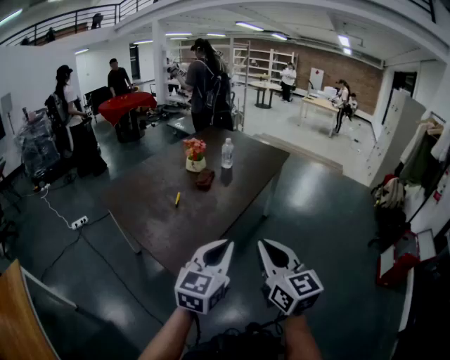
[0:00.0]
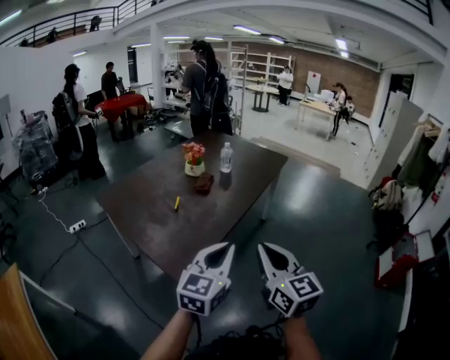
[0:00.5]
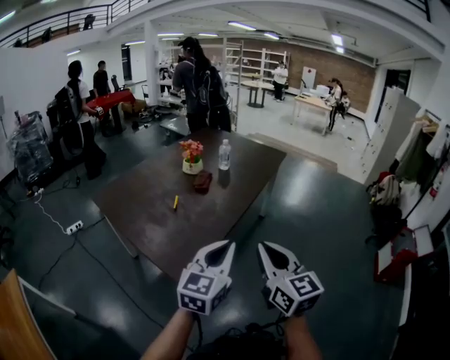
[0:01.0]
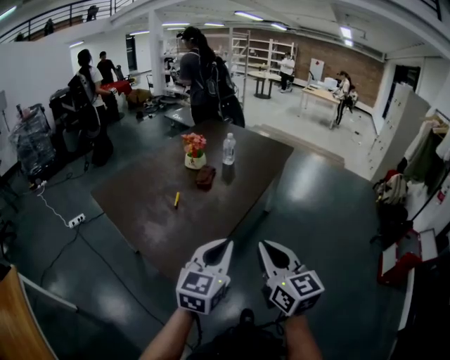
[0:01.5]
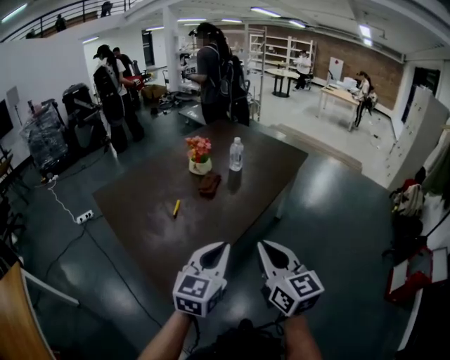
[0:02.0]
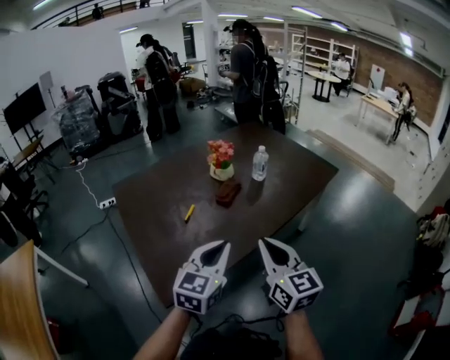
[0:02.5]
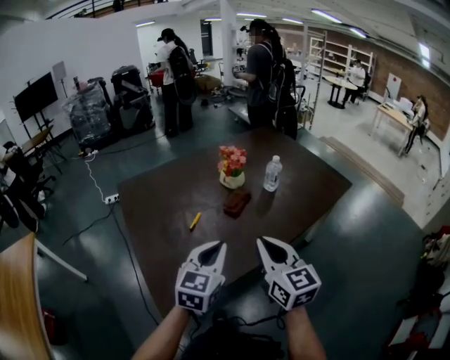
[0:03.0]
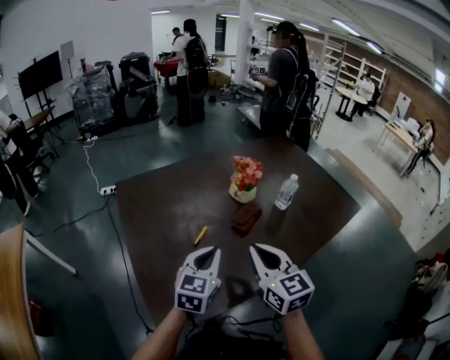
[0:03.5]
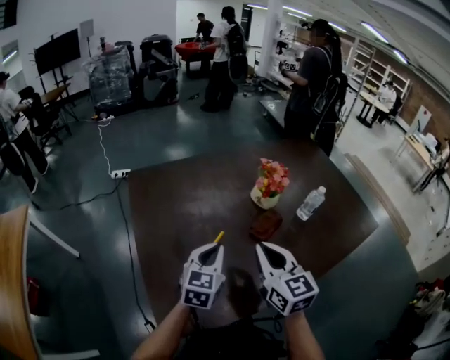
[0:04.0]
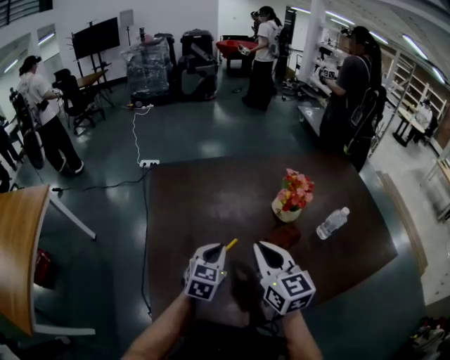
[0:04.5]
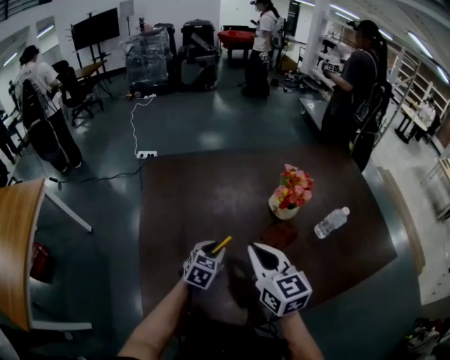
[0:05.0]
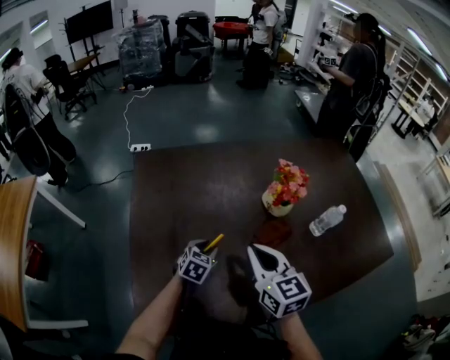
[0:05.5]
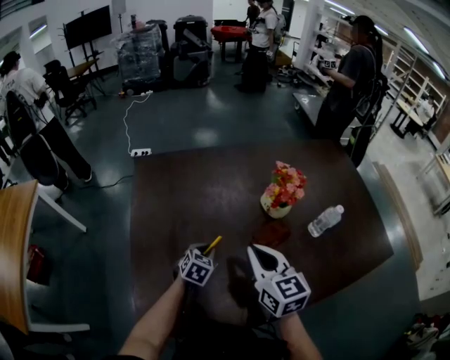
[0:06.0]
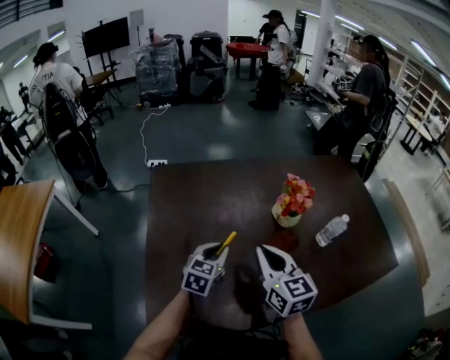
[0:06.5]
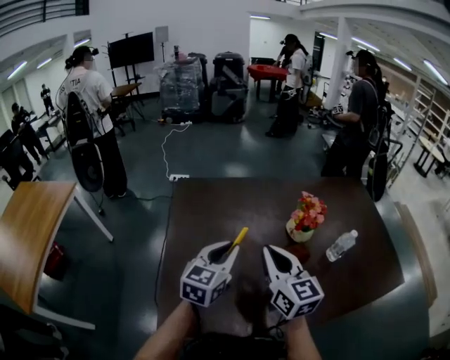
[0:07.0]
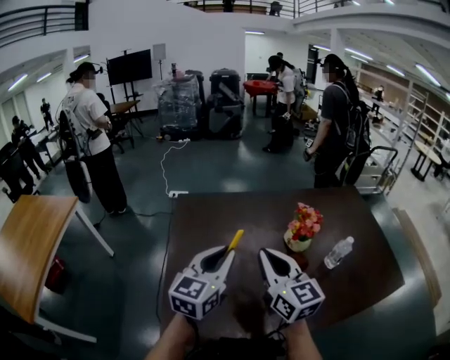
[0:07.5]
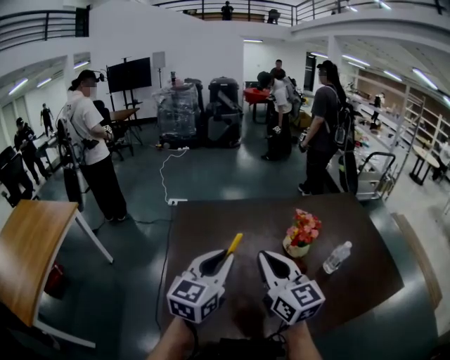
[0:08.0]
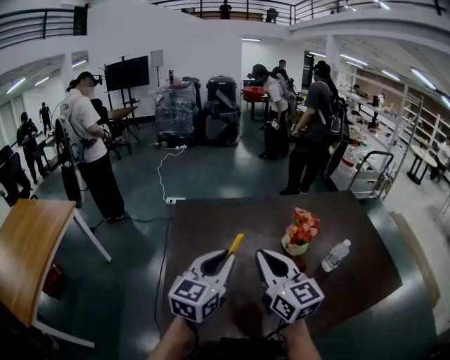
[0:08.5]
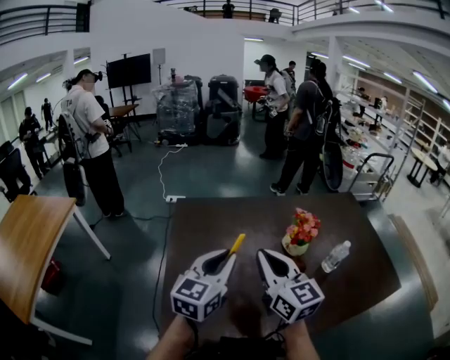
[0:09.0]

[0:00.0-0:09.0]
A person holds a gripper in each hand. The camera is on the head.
0:00.0 to 0:02.0: Both grippers travel together forward, about 15 cm.
0:02.0 to 0:04.5: The left gripper moves approximately 40 cm, and turns by some 40 degrees, while the right gripper changes place by about 40 cm, and swivels approximately 40 degrees.
0:04.5 to 0:07.0: The left gripper travels upward by some 15 cm. The right gripper shifts roughly 5 cm upward.
0:07.0 to 0:09.0: The left gripper goes some 5 cm upward, while the right gripper ends up approximately 5 cm from where it was.

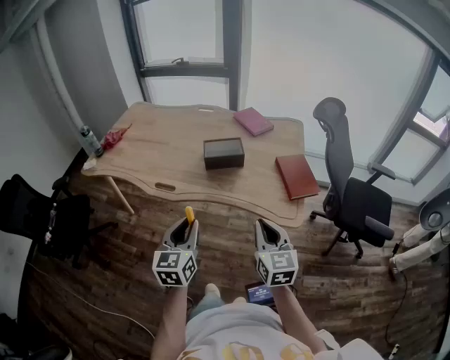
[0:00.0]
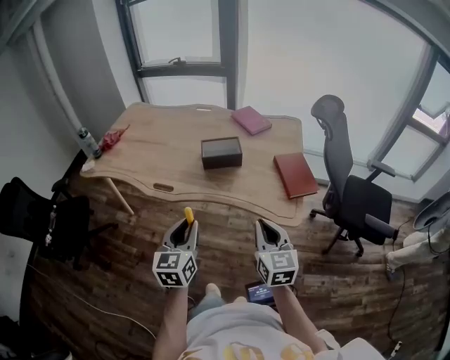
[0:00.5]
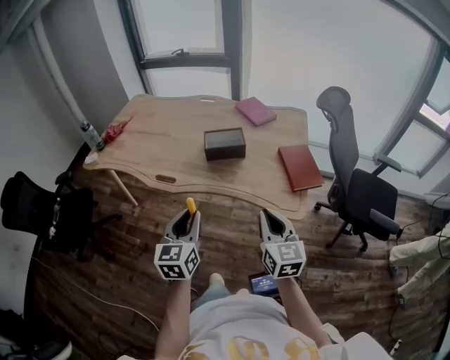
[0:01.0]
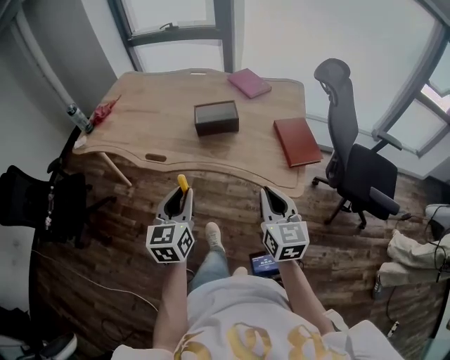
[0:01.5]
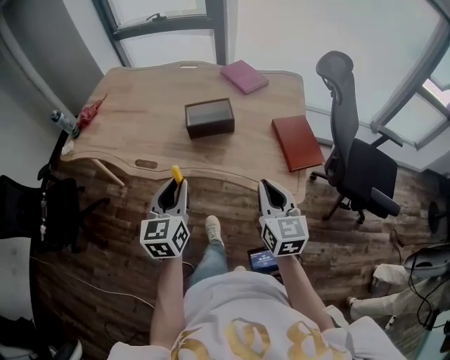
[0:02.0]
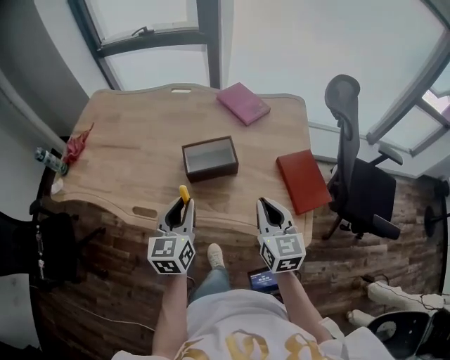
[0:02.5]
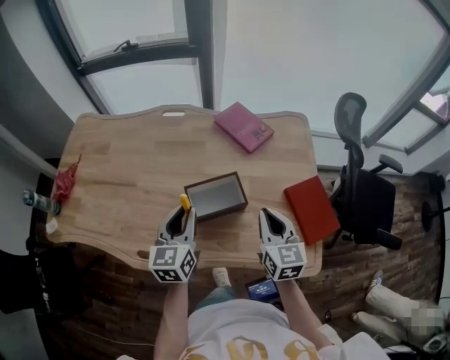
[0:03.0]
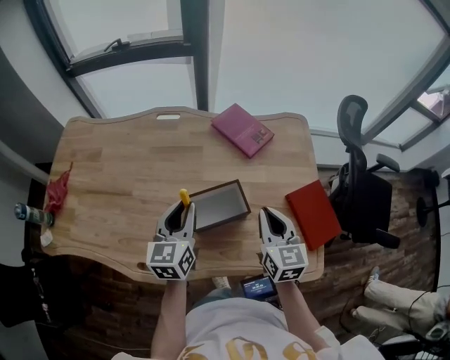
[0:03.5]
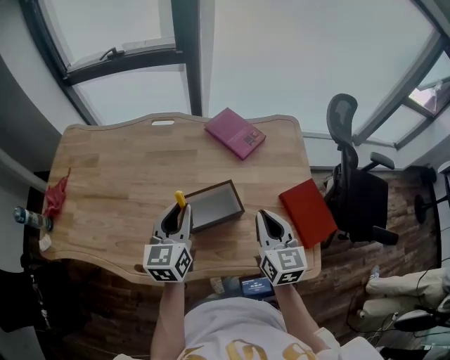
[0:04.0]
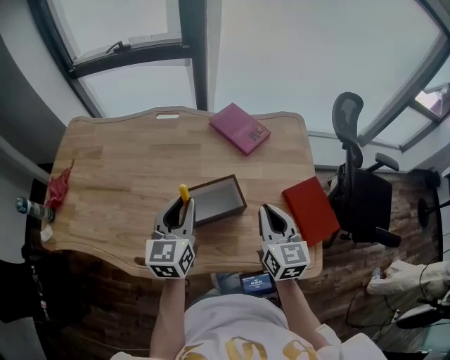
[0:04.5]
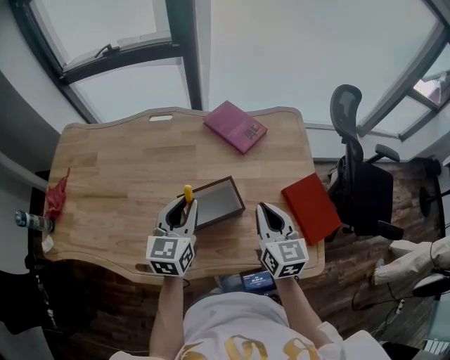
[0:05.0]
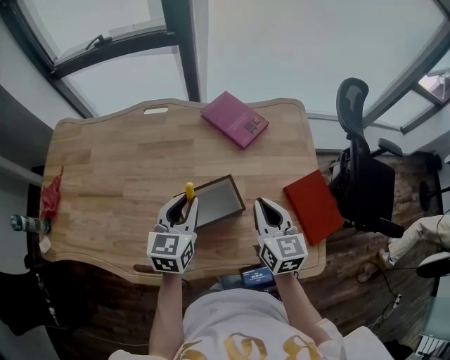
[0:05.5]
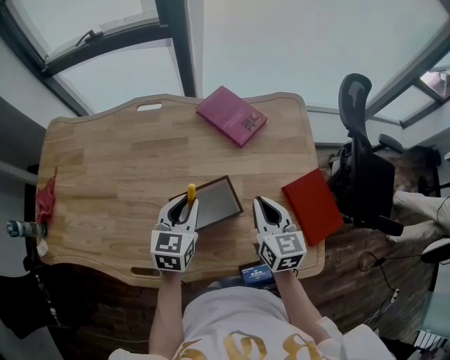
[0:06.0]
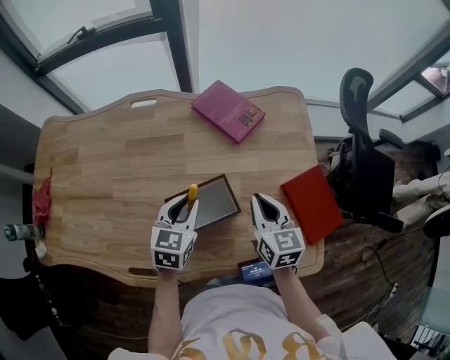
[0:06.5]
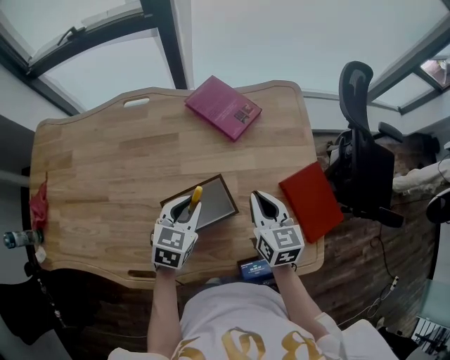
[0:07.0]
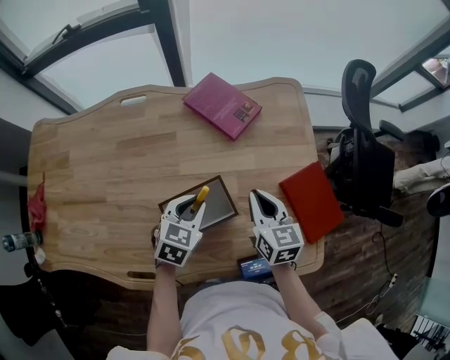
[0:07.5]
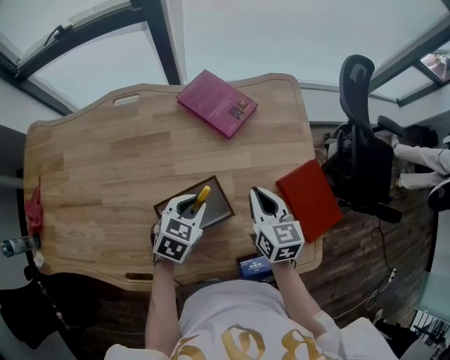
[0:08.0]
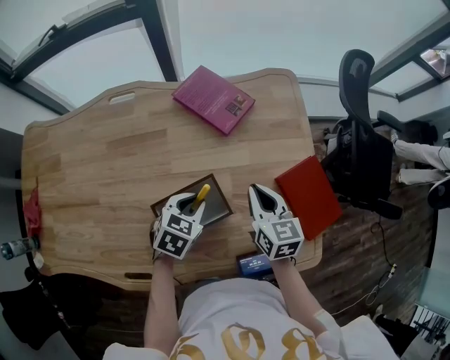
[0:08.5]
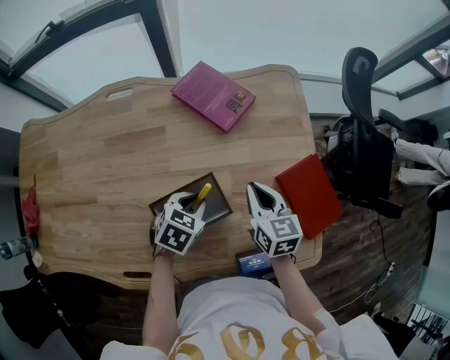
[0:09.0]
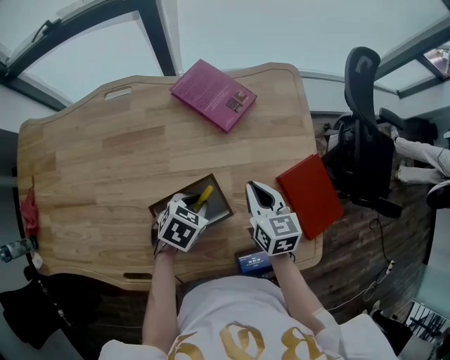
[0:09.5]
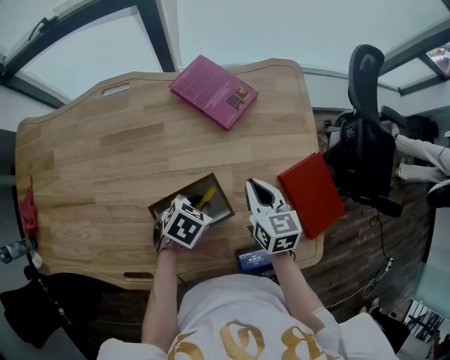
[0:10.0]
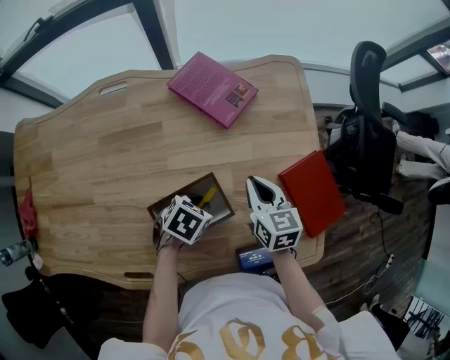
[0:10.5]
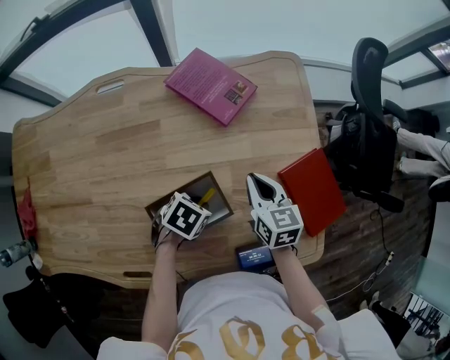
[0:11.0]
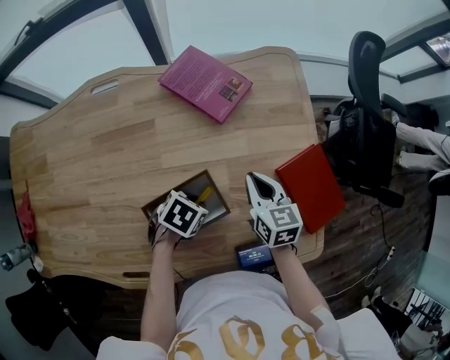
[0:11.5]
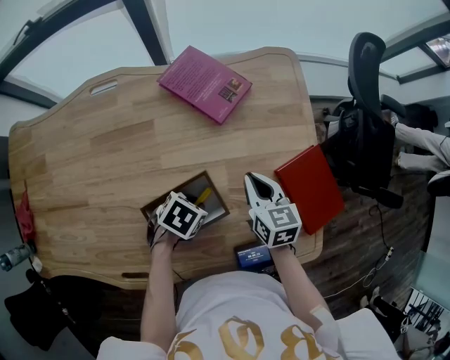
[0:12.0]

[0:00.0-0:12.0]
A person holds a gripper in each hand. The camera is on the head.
0:00.0 to 0:02.0: Both grippers move forward, approximately 10 cm.
0:02.0 to 0:04.0: Both grippers move forward, some 30 cm.
0:04.0 to 0:06.0: The right gripper heads forward and downward, covering roughly 10 cm. The left gripper moves downward and forward, approximately 10 cm.
0:06.0 to 0:08.0: The right gripper ends up some 5 cm from where it was. Meanwhile the left gripper goes about 10 cm downward and to the right, and rotates approximately 30 degrees.
0:08.0 to 0:10.0: The left gripper heads downward, covering approximately 5 cm, and rotates approximately 20 degrees.
0:10.0 to 0:12.0: The grippers stay close to where they were, moving slightly.

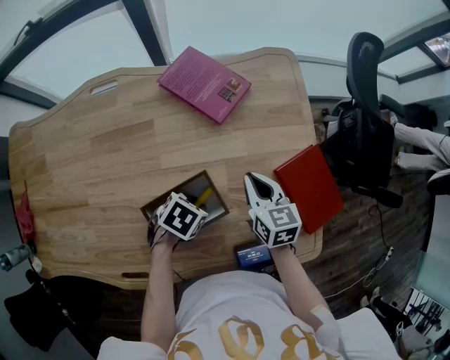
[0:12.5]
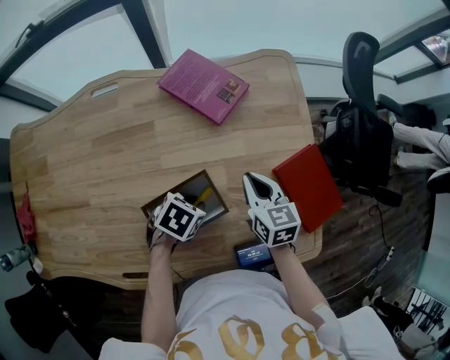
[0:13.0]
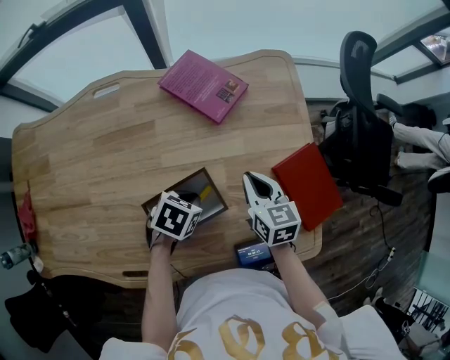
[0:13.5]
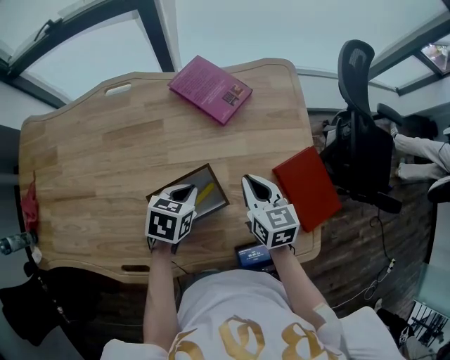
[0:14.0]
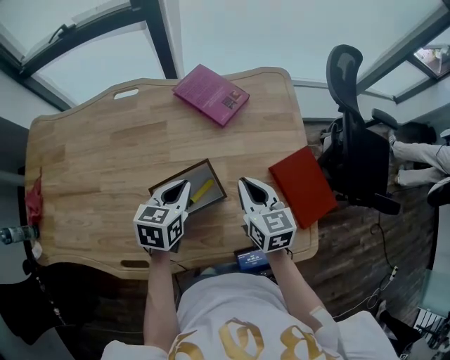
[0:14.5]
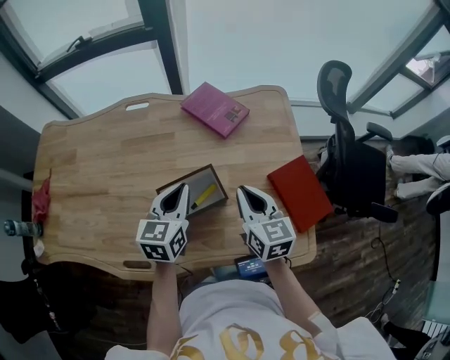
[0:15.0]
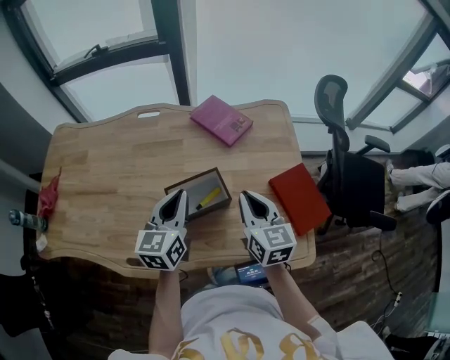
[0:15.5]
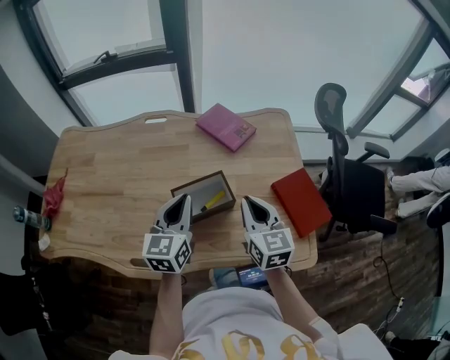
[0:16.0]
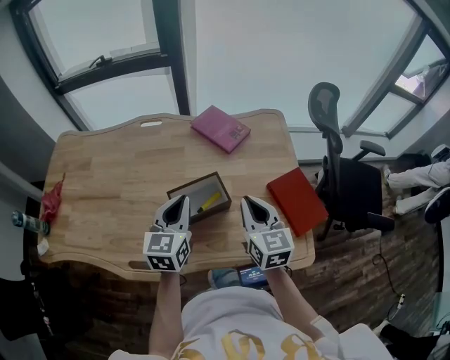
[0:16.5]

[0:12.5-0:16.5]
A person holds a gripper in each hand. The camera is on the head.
0:12.5 to 0:14.5: The right gripper shifts some 5 cm upward. The left gripper is displaced upward by some 15 cm, rotates approximately 50 degrees, and closes.
0:14.5 to 0:16.5: The grippers both shift upward and backward by approximately 15 cm. The left gripper changes its angle by some 30 degrees.

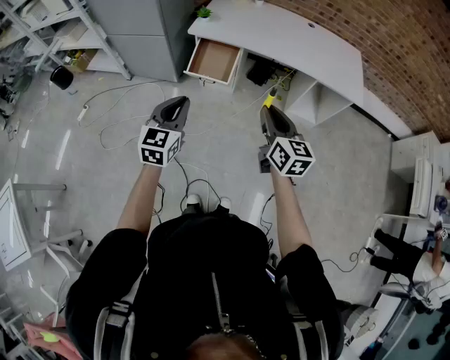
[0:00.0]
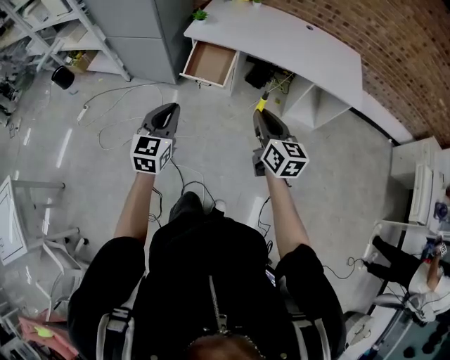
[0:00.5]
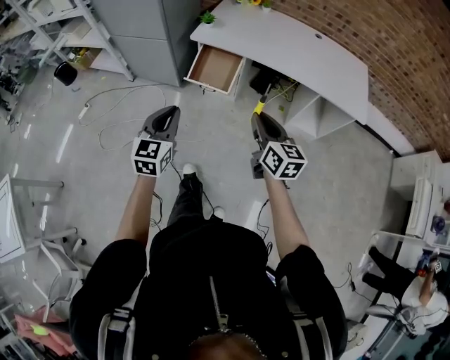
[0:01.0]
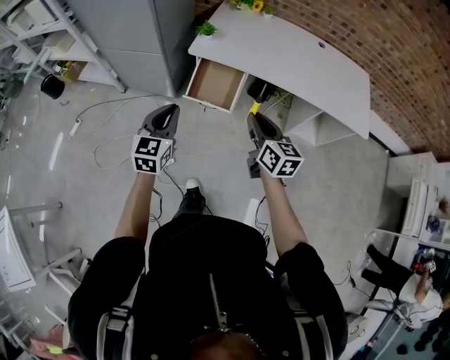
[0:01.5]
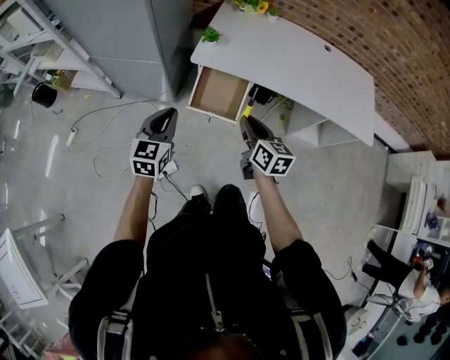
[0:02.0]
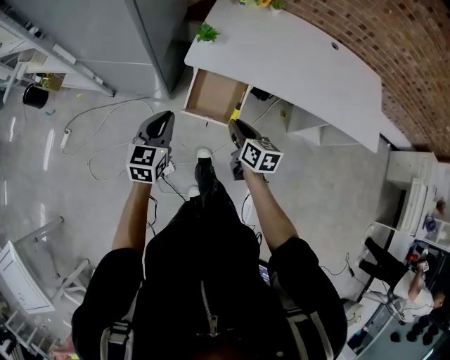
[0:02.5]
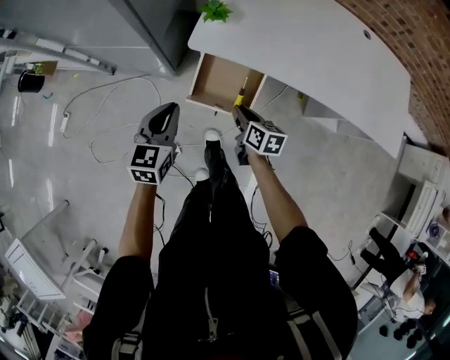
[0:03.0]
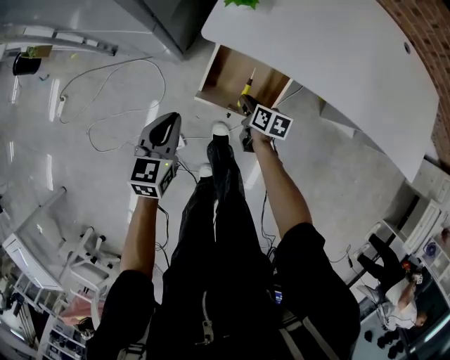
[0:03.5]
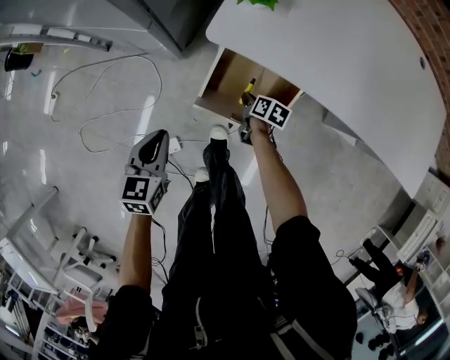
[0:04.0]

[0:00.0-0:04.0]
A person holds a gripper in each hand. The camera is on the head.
0:00.0 to 0:02.0: Both grippers travel together forward and to the left, approximately 30 cm.
0:02.0 to 0:04.0: The right gripper shifts some 50 cm downward and forward, and tilts its fingers roughly 30 degrees downward, while the left gripper travels downward and forward by approximately 35 cm, and changes its angle by approximately 30 degrees.
